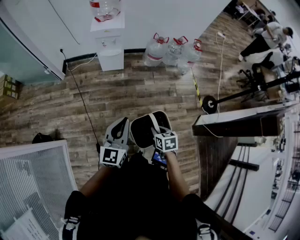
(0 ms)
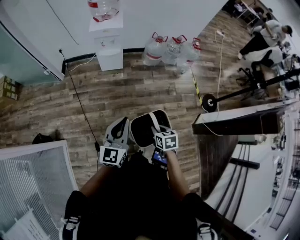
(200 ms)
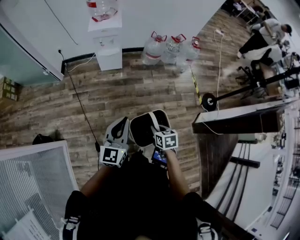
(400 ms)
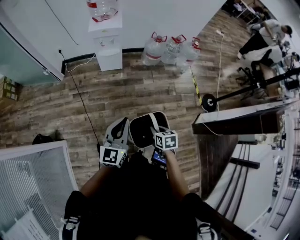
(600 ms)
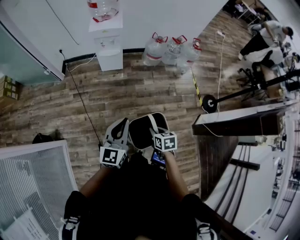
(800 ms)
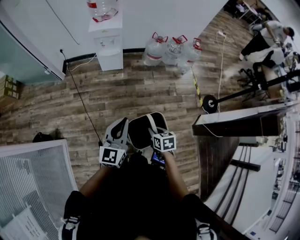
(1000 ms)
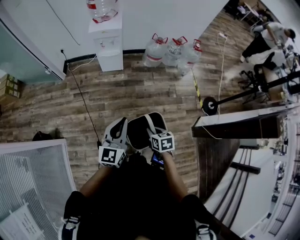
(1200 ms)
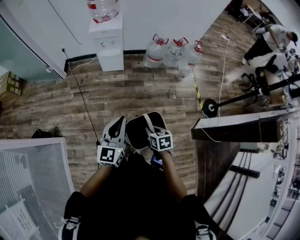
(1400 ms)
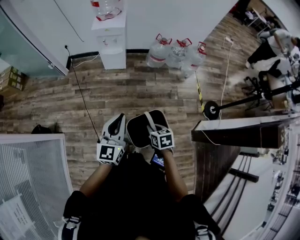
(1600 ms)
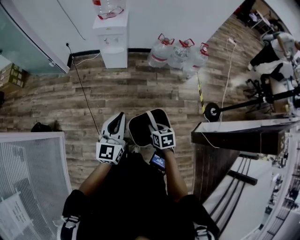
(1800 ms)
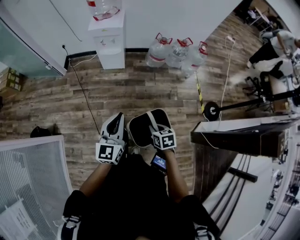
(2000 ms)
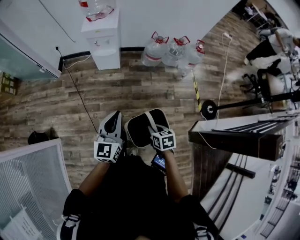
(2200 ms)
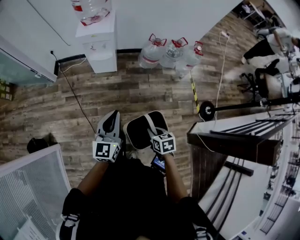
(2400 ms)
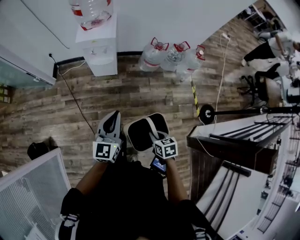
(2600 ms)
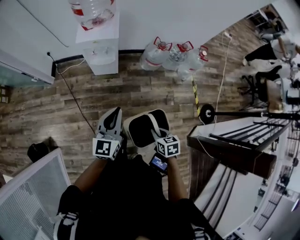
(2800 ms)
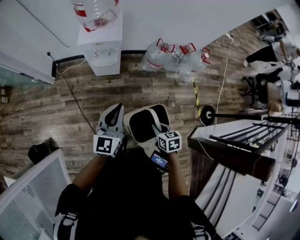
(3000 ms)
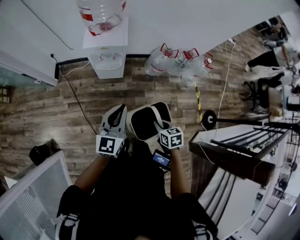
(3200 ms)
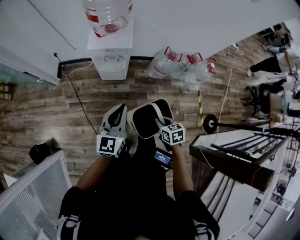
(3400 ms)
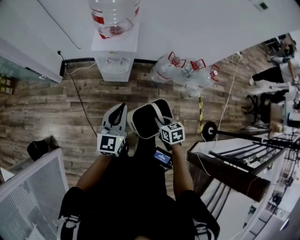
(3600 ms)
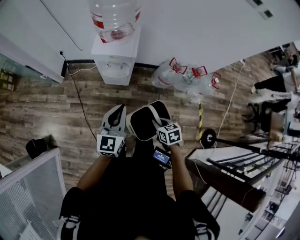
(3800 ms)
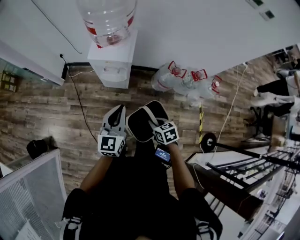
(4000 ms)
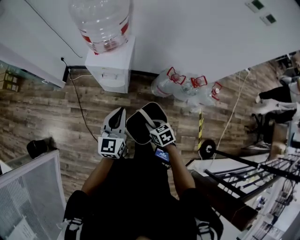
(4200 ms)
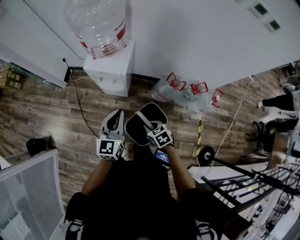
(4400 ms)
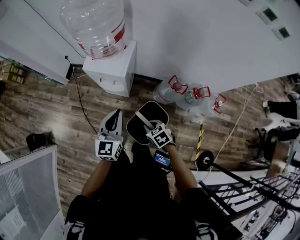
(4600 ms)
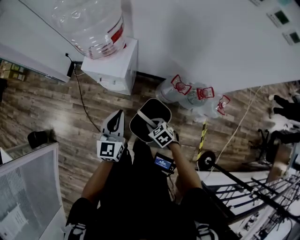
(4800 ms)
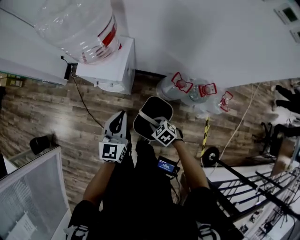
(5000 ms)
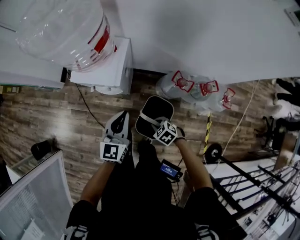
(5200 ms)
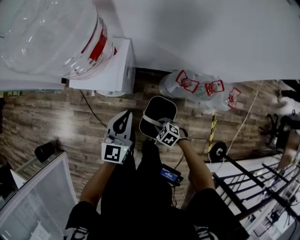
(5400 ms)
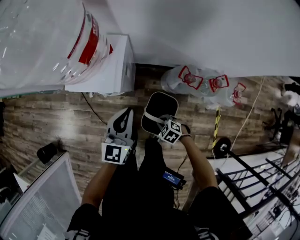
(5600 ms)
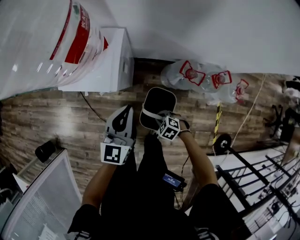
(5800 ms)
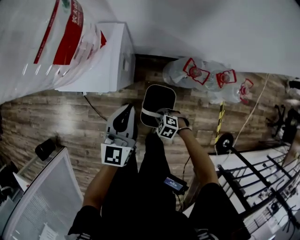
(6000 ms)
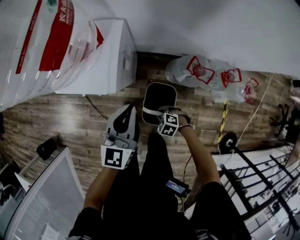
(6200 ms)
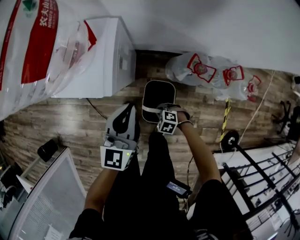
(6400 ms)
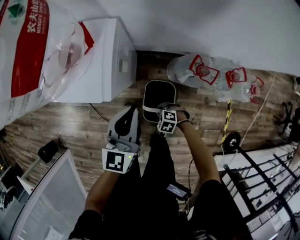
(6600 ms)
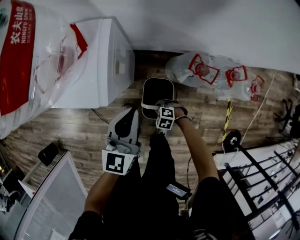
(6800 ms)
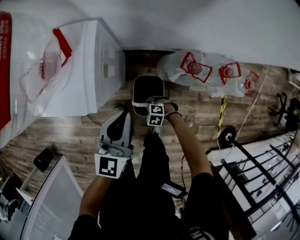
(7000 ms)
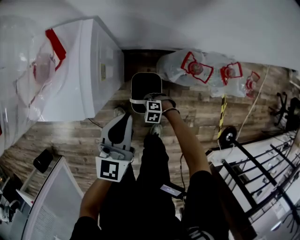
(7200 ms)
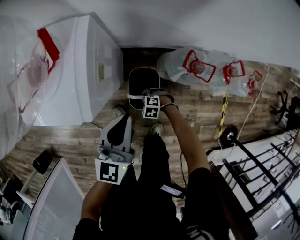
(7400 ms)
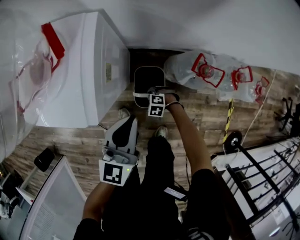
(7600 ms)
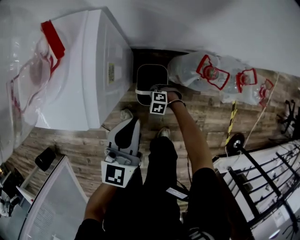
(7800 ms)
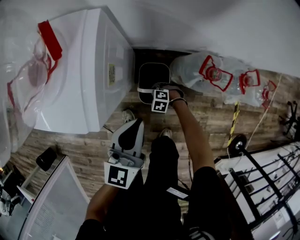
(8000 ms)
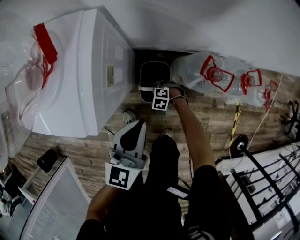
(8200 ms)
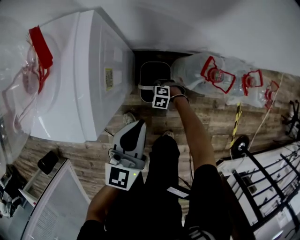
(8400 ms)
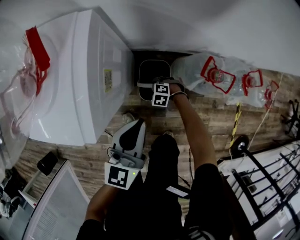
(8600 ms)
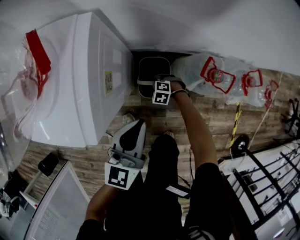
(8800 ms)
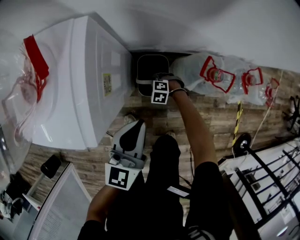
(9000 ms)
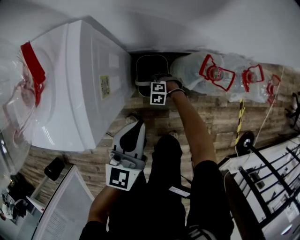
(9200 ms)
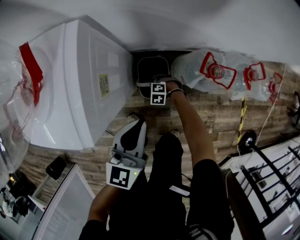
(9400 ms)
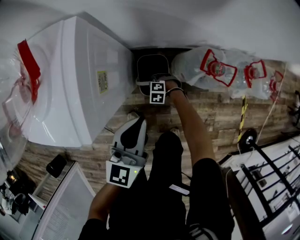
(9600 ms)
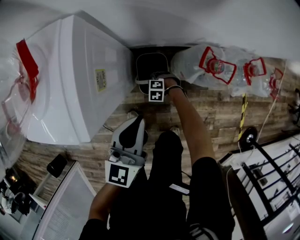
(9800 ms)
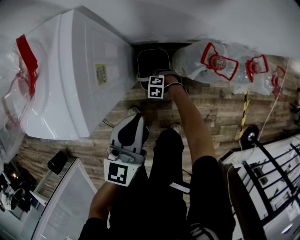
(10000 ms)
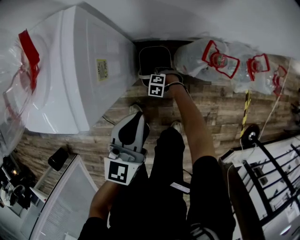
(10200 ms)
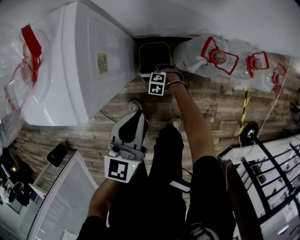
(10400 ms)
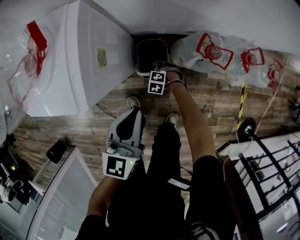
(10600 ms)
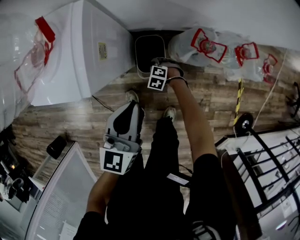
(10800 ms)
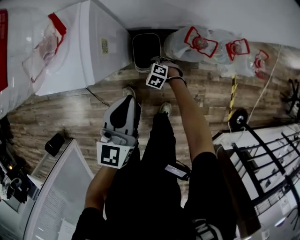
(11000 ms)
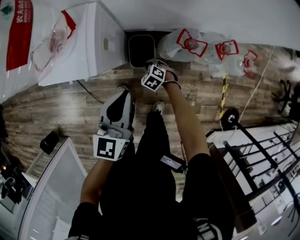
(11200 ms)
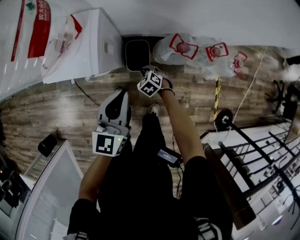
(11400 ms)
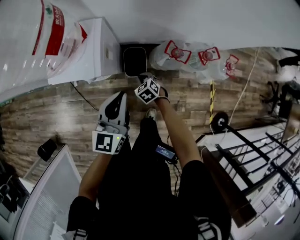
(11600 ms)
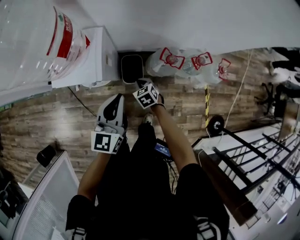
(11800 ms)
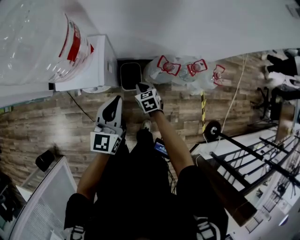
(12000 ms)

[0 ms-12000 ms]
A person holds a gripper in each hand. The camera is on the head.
0 ms to 1600 ms: The left gripper moves to the right, about 5 cm.
1600 ms to 3000 ms: Both grippers move forward, roughly 30 cm.
3000 ms to 4400 ms: The right gripper moves roughly 25 cm, and swivels about 40 degrees. Meanwhile the left gripper shifts by roughly 20 cm.
4400 ms to 6000 ms: The left gripper goes approximately 25 cm downward, forward and to the right; the right gripper shifts roughly 25 cm downward, and turns by about 30 degrees.
6000 ms to 7600 ms: The left gripper goes some 10 cm downward, while the right gripper heads downward and forward, covering roughly 25 cm.
7600 ms to 9000 ms: The right gripper ends up some 10 cm from where it was.
9000 ms to 10400 ms: The right gripper shifts by approximately 5 cm, and opens.
10400 ms to 12000 ms: The left gripper travels upward by approximately 25 cm, while the right gripper heads upward, covering roughly 50 cm, rolls clockwise, seen from behind, by some 50 degrees, and closes its fingers.

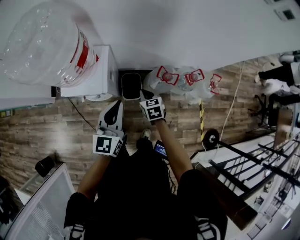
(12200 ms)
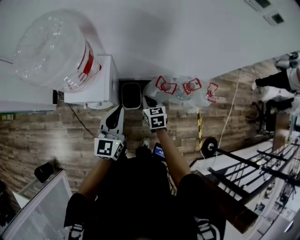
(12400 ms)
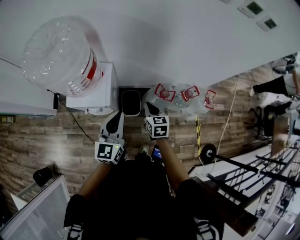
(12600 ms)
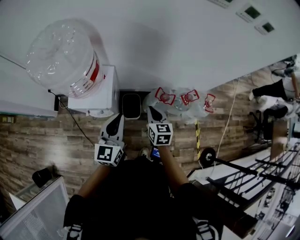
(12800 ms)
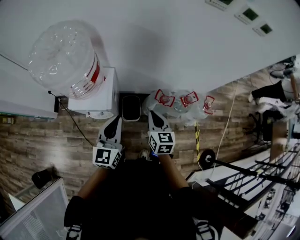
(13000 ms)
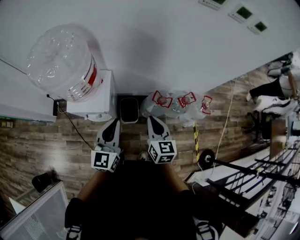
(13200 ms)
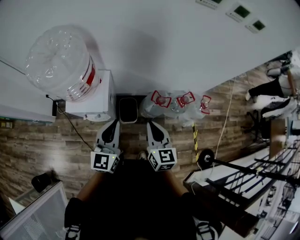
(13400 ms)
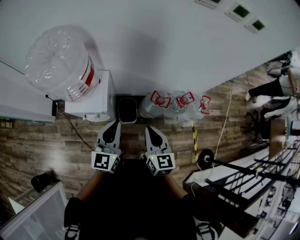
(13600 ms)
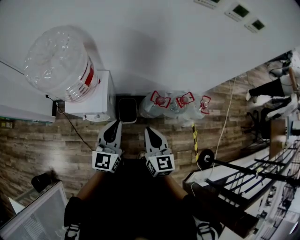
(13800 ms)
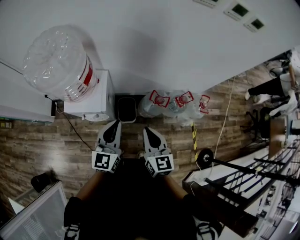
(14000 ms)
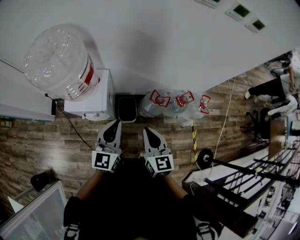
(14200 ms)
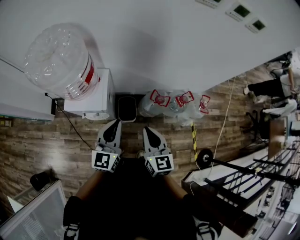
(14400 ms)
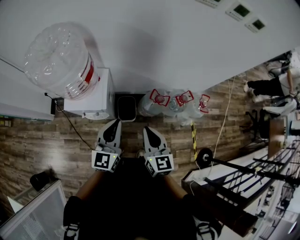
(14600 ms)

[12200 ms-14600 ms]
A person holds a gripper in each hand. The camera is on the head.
12200 ms to 13400 ms: The left gripper heads upward, covering about 5 cm; the right gripper travels upward by roughly 25 cm, and swivels about 30 degrees.
13400 ms to 14600 ms: The grippers move only a little.

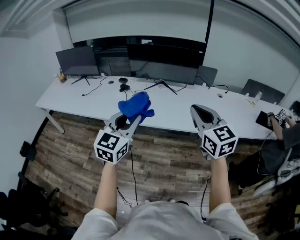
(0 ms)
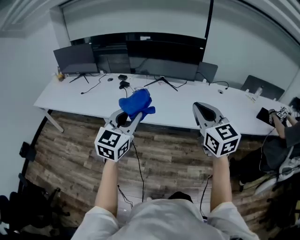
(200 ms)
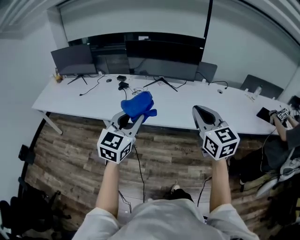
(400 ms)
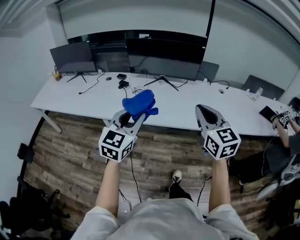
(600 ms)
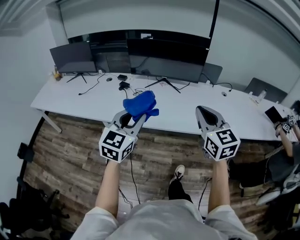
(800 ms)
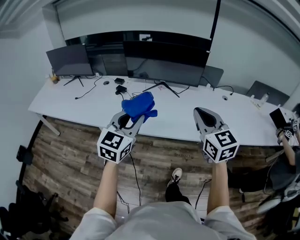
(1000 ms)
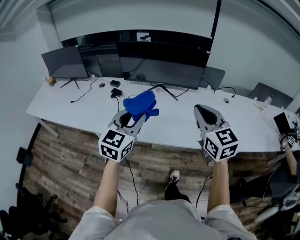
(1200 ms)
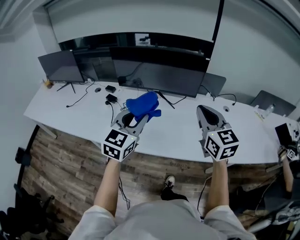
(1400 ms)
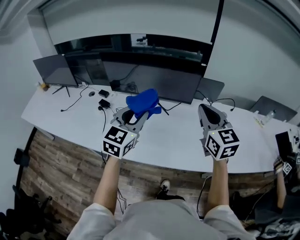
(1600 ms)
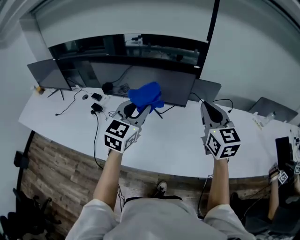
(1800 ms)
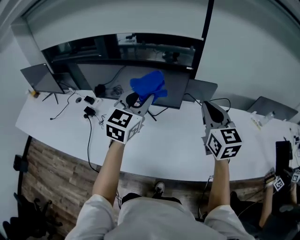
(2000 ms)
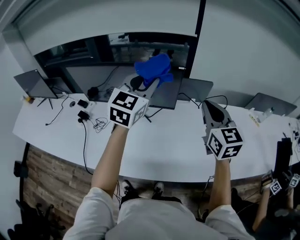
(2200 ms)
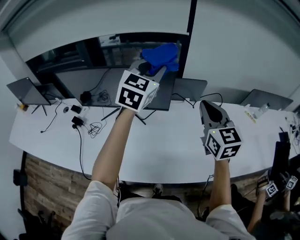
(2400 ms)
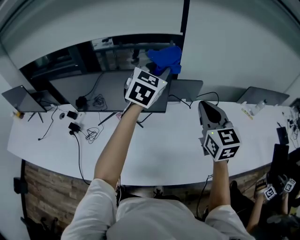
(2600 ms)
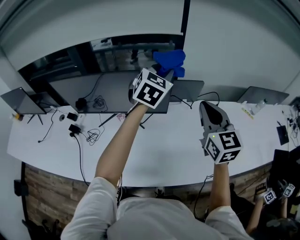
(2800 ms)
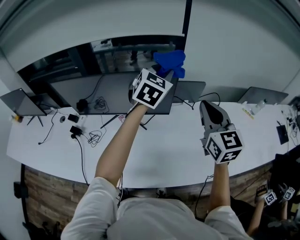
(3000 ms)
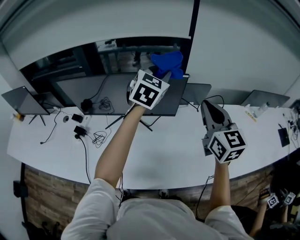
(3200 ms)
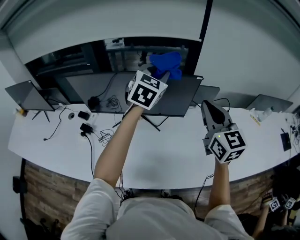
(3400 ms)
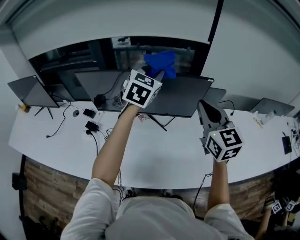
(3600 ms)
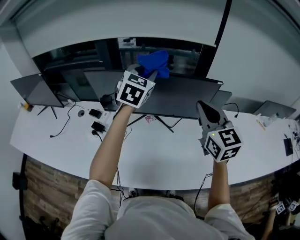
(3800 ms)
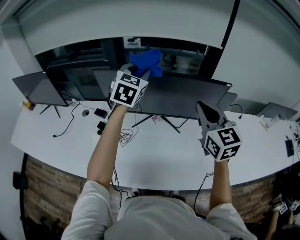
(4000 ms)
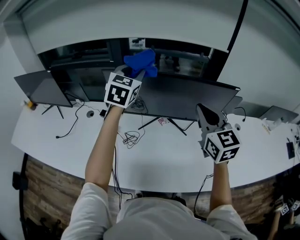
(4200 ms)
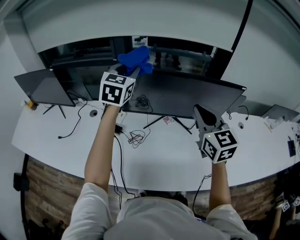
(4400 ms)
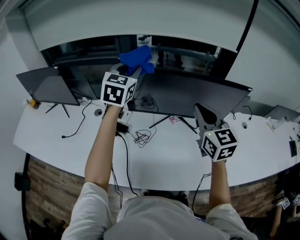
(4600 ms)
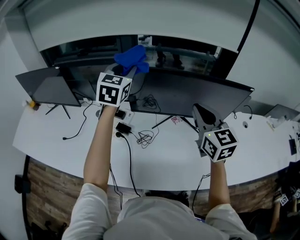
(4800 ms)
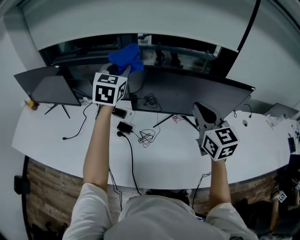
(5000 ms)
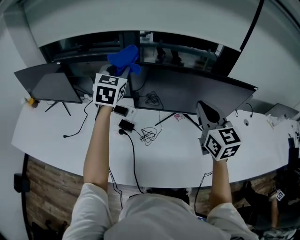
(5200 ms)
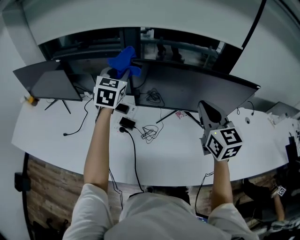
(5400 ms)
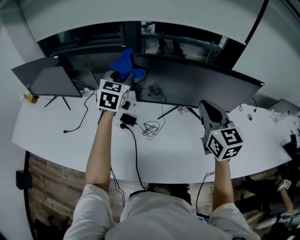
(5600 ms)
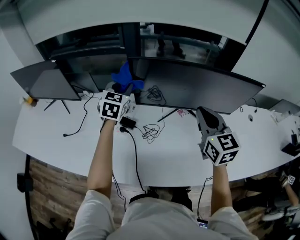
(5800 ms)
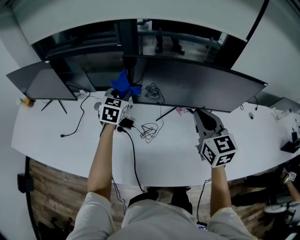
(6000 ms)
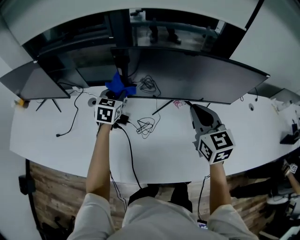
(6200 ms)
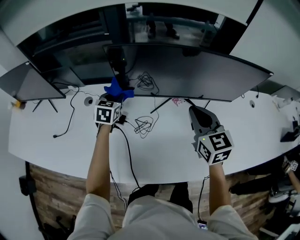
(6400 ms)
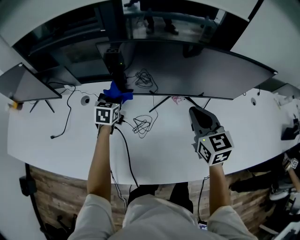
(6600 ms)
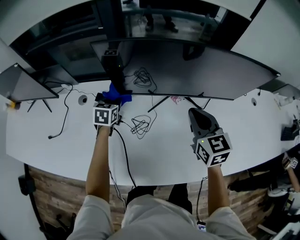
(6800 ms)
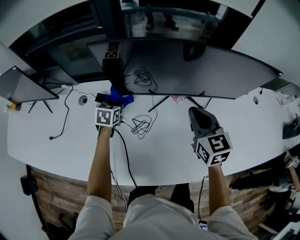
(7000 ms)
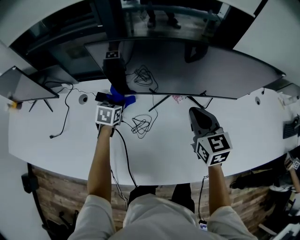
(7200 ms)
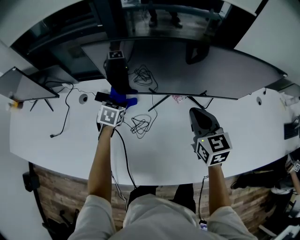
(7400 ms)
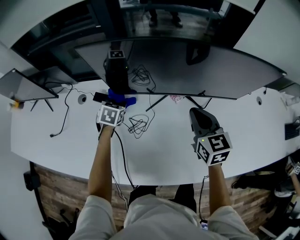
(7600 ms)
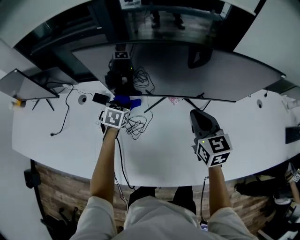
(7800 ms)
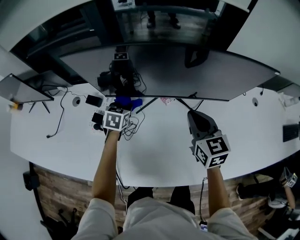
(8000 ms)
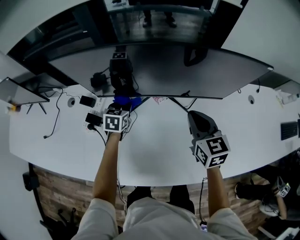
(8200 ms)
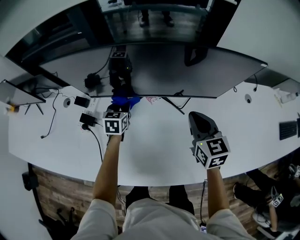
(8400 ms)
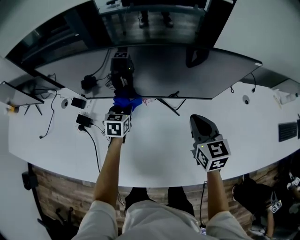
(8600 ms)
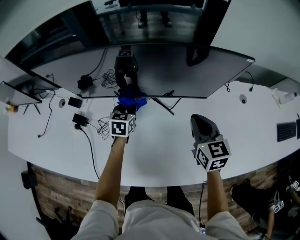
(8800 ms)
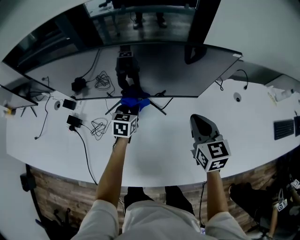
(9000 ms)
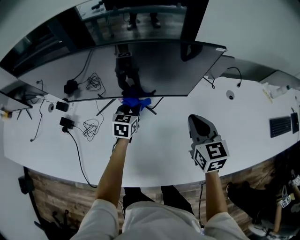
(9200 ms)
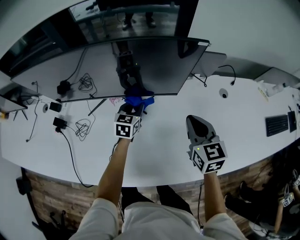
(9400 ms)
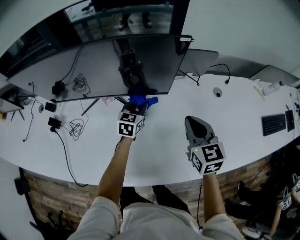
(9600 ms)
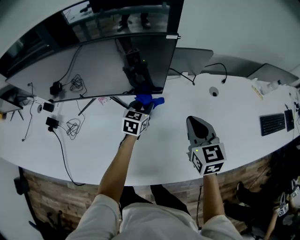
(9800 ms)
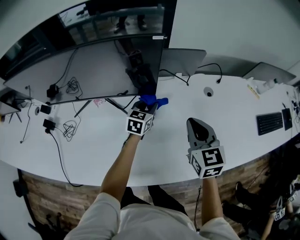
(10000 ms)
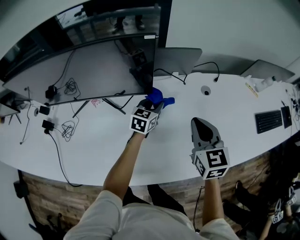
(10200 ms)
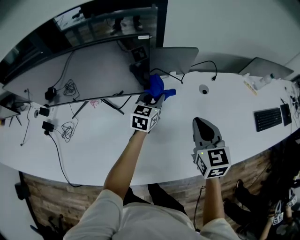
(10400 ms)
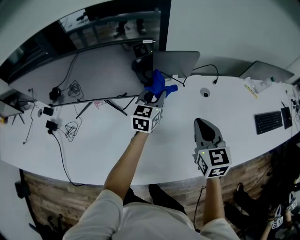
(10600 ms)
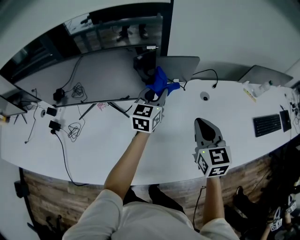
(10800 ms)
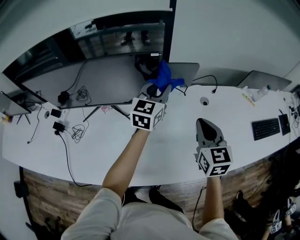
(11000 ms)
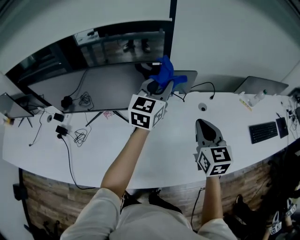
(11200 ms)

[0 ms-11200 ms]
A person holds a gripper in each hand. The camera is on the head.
0 ms to 1600 ms: Both grippers travel together forward, some 40 cm.
1600 ms to 3200 ms: The left gripper shifts roughly 35 cm forward. The right gripper travels forward by some 15 cm.
3200 ms to 4800 ms: Both grippers travel together to the left, approximately 40 cm.
4800 ms to 6400 ms: The left gripper heads downward, covering about 30 cm, and rotates roughly 30 degrees, while the right gripper heads downward, covering approximately 15 cm.
6400 ms to 8000 ms: The grippers both shift to the right and downward by roughly 15 cm.
8000 ms to 9600 ms: The grippers both shift to the right by about 35 cm.
9600 ms to 11200 ms: The left gripper heads upward and to the right, covering some 35 cm, and swivels approximately 30 degrees, while the right gripper heads upward and to the right, covering roughly 15 cm.
